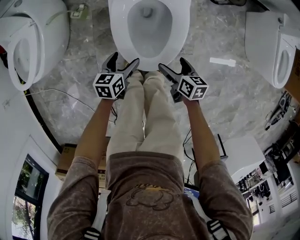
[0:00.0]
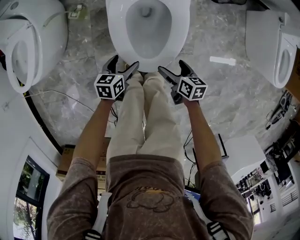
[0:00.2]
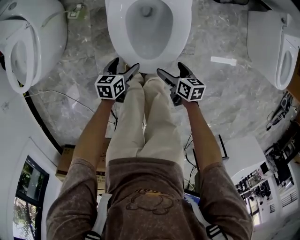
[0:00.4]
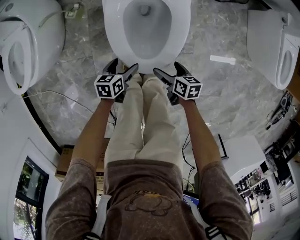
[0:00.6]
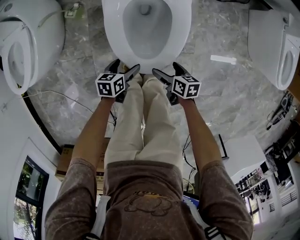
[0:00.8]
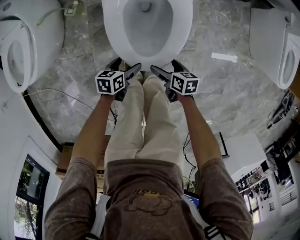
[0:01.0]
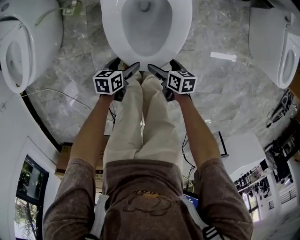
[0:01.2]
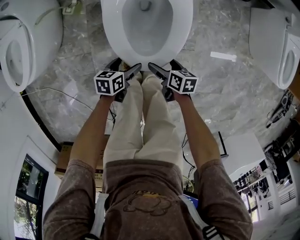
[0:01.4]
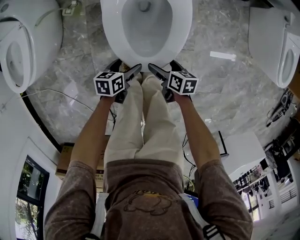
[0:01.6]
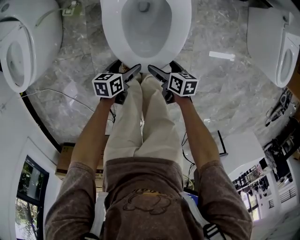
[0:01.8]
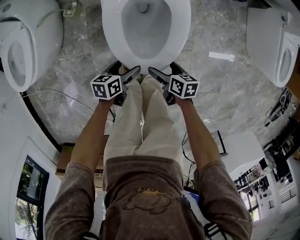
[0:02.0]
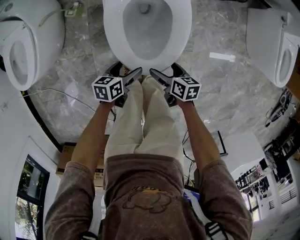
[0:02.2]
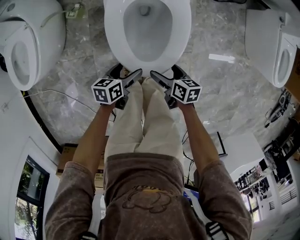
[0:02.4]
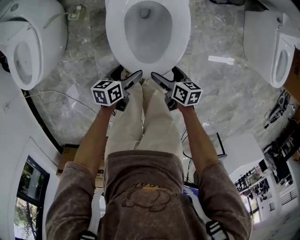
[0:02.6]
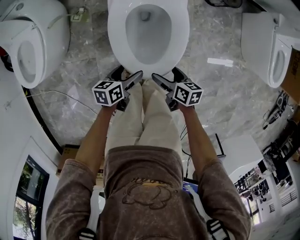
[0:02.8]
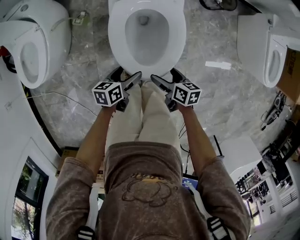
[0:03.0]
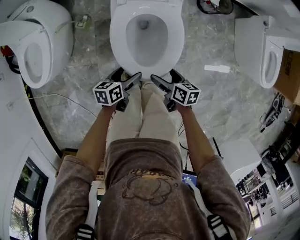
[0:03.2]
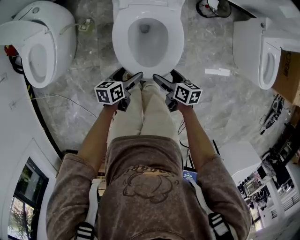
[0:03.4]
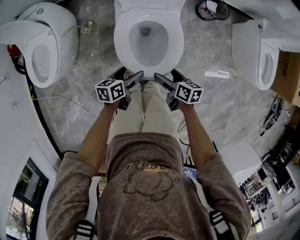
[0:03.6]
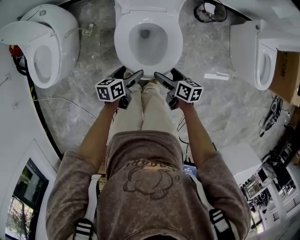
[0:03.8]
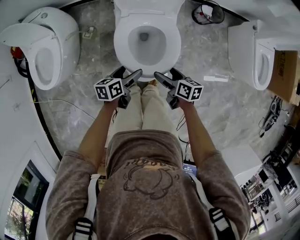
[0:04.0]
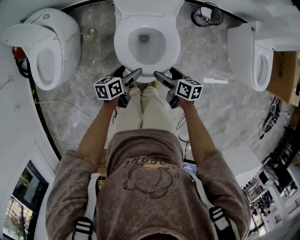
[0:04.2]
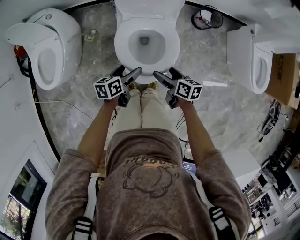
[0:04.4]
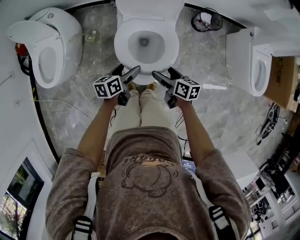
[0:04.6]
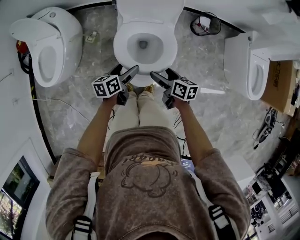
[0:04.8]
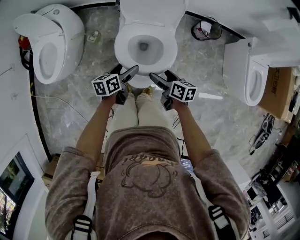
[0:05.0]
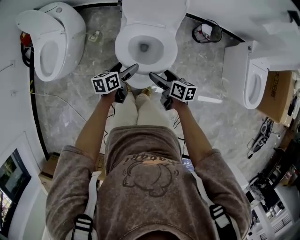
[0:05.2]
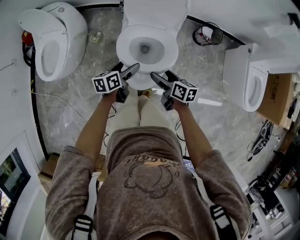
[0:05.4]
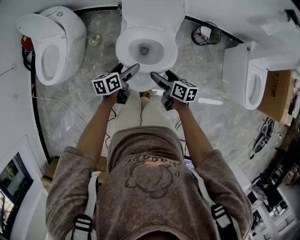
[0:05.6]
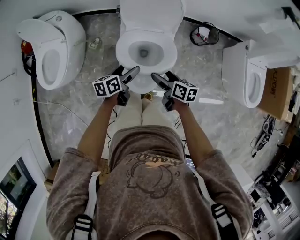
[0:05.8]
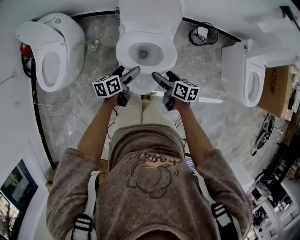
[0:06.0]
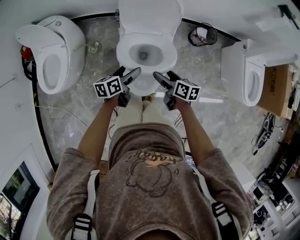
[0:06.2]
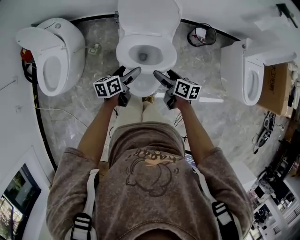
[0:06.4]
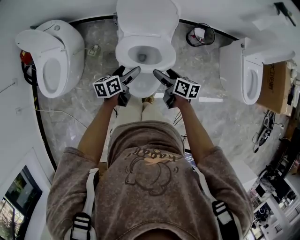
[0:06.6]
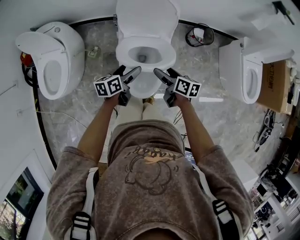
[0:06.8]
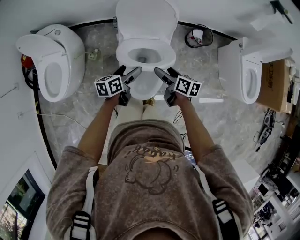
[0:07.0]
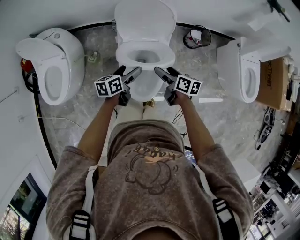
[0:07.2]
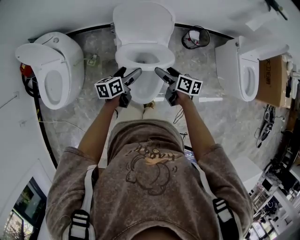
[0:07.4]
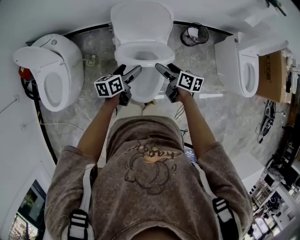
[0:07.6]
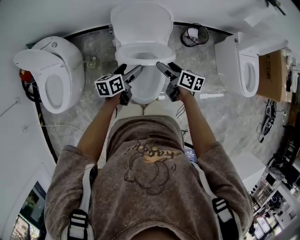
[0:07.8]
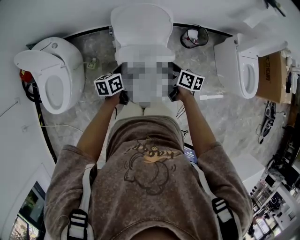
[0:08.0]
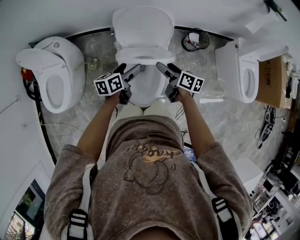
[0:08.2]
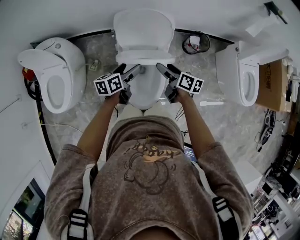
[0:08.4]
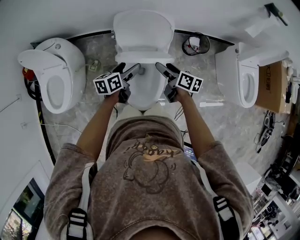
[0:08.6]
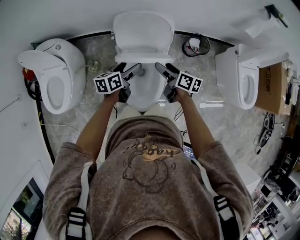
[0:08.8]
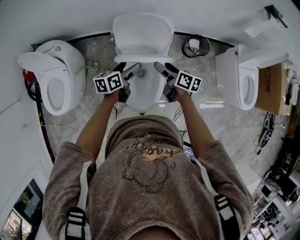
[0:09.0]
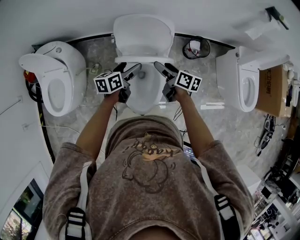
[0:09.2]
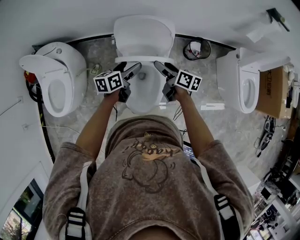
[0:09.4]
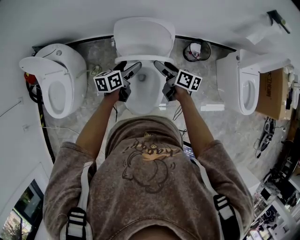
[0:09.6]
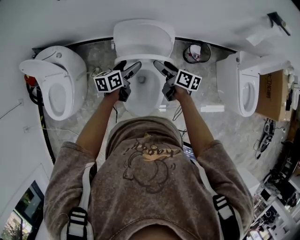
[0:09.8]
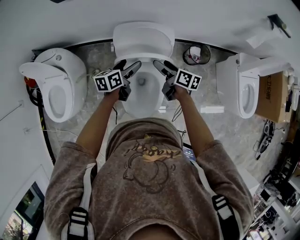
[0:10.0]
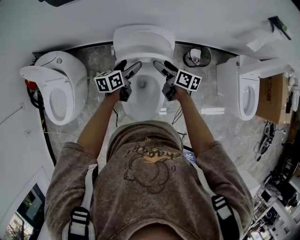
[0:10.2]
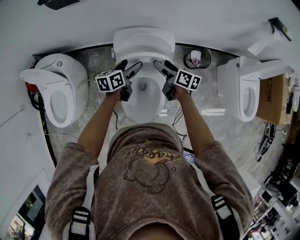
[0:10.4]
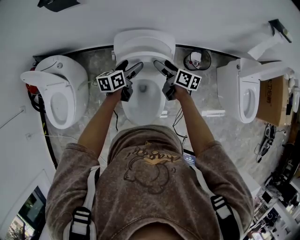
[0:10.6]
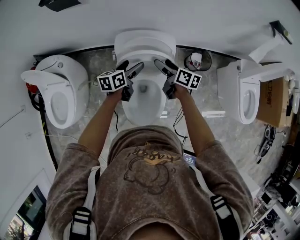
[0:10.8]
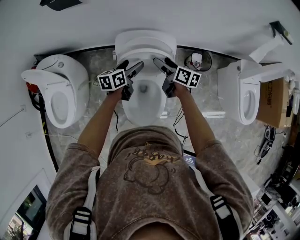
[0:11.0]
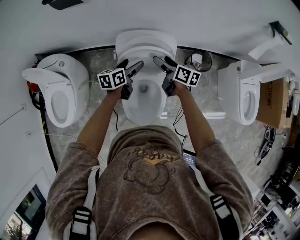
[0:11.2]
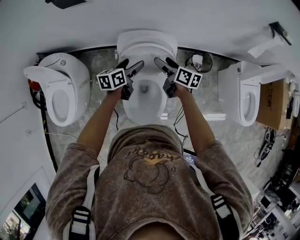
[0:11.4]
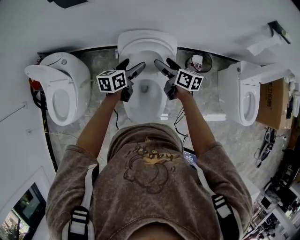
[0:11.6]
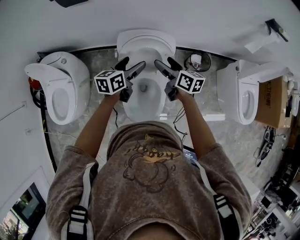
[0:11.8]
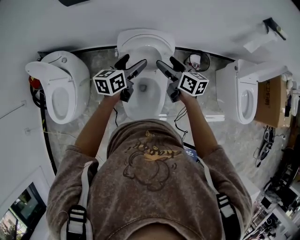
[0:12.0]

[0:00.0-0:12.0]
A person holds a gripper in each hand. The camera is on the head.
0:00.0 to 0:01.6: The left gripper moves downward and backward, approximately 10 cm; the right gripper is displaced downward by some 10 cm.
0:01.6 to 0:03.0: Both grippers travel together upward, some 15 cm.
0:03.0 to 0:04.4: Both grippers travel together upward and forward, roughly 15 cm.
0:04.4 to 0:06.0: The left gripper ends up some 5 cm from where it was, while the right gripper shifts by some 5 cm.
0:06.0 to 0:07.6: The grippers both shift forward by approximately 10 cm.
0:07.6 to 0:09.0: The grippers both shift forward by some 5 cm.
0:09.0 to 0:10.4: Both grippers move forward, roughly 10 cm.
0:10.4 to 0:12.0: Both grippers move upward, some 10 cm.

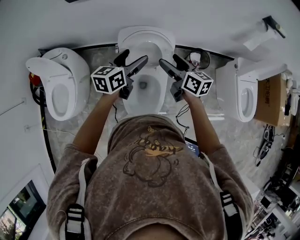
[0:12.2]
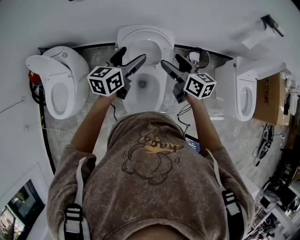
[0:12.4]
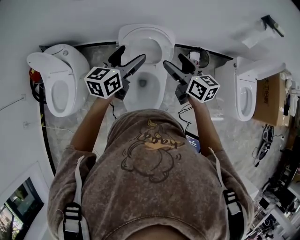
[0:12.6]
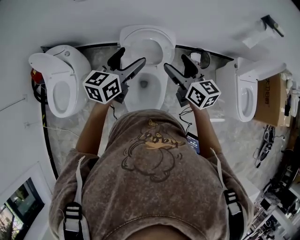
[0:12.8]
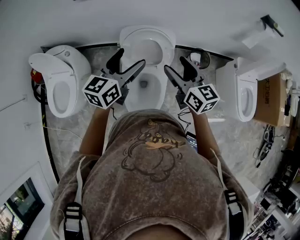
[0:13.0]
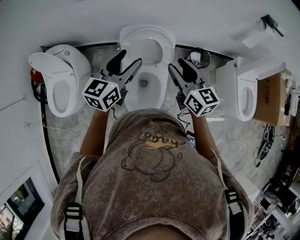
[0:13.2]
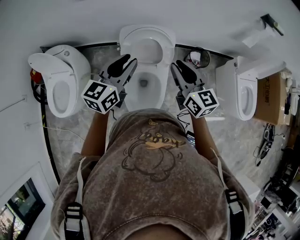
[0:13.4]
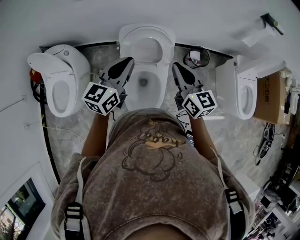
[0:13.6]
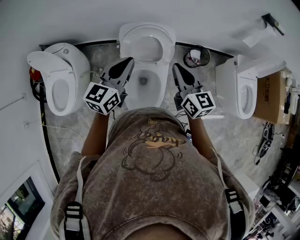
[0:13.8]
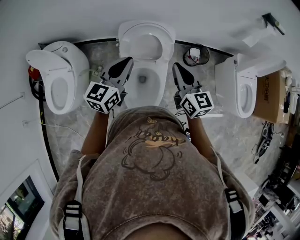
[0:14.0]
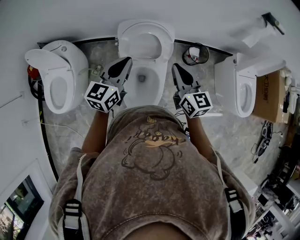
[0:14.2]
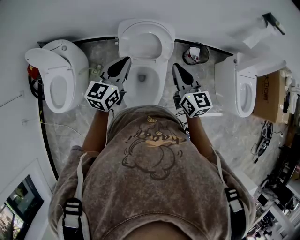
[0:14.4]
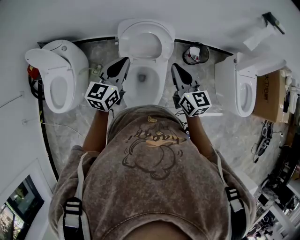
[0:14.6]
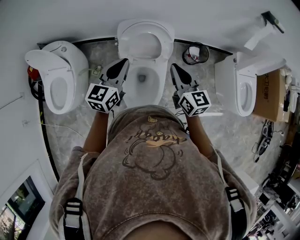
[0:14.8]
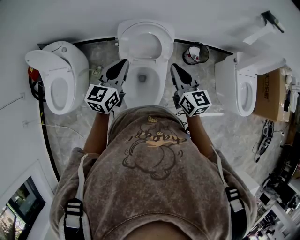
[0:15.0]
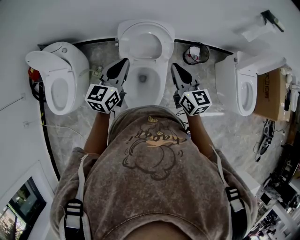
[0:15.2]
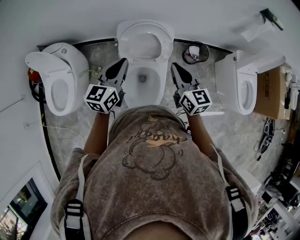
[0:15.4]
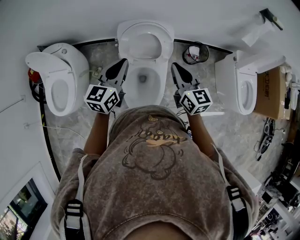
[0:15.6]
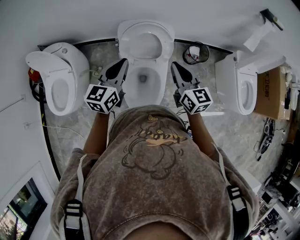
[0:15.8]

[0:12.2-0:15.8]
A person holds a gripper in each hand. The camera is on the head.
0:12.2 to 0:14.0: Both grippers travel together backward and upward, roughly 10 cm. The right gripper turns by roughly 30 degrees, and closes its fingers; the left gripper closes.
0:14.0 to 0:15.8: The grippers move only a little.

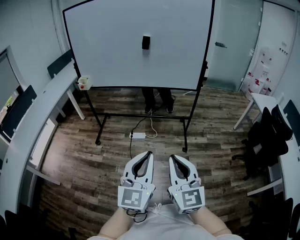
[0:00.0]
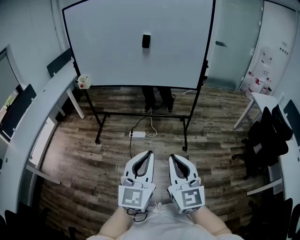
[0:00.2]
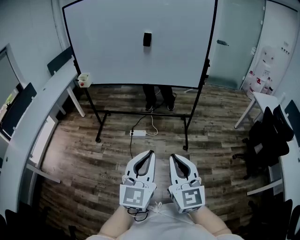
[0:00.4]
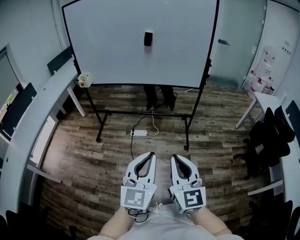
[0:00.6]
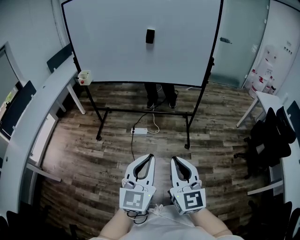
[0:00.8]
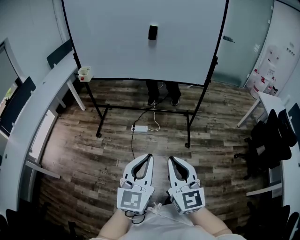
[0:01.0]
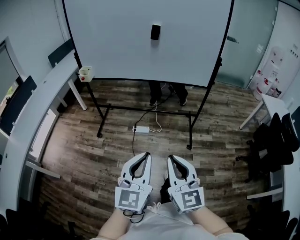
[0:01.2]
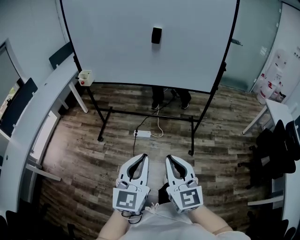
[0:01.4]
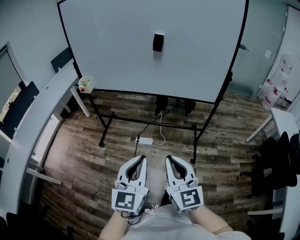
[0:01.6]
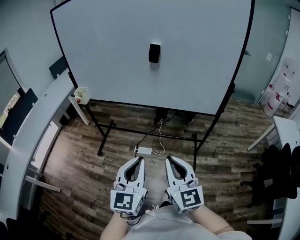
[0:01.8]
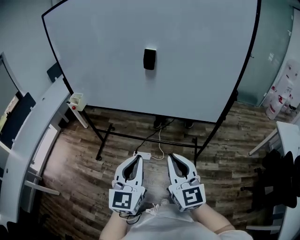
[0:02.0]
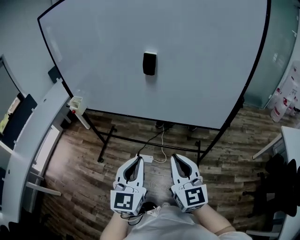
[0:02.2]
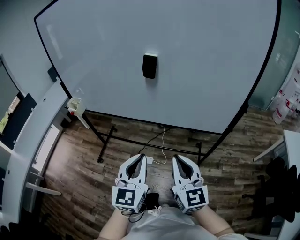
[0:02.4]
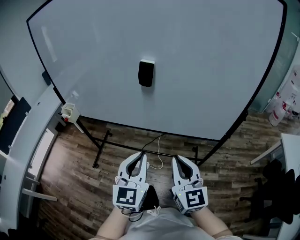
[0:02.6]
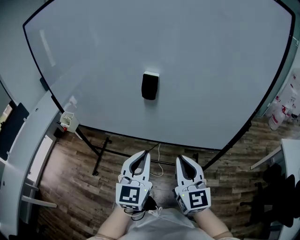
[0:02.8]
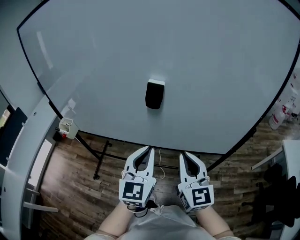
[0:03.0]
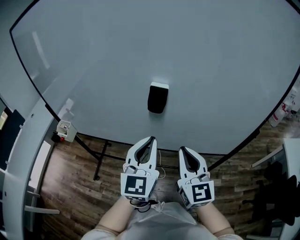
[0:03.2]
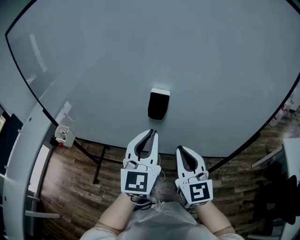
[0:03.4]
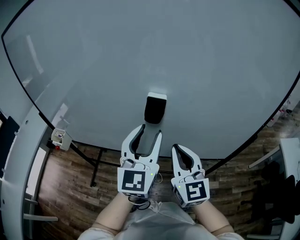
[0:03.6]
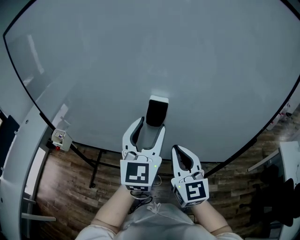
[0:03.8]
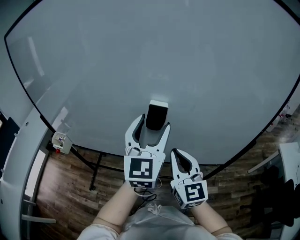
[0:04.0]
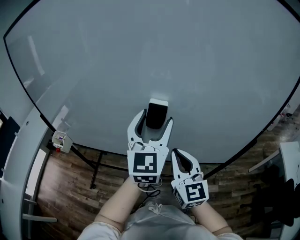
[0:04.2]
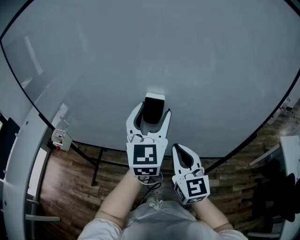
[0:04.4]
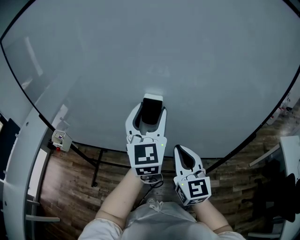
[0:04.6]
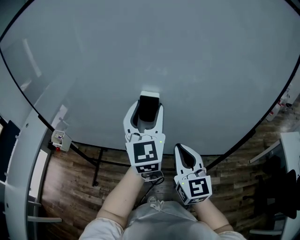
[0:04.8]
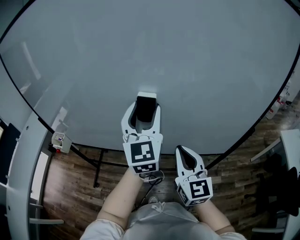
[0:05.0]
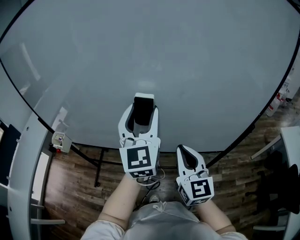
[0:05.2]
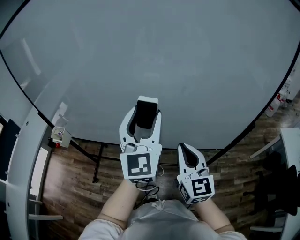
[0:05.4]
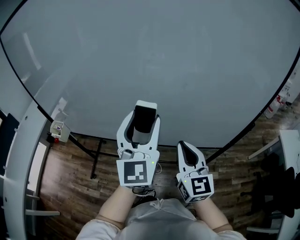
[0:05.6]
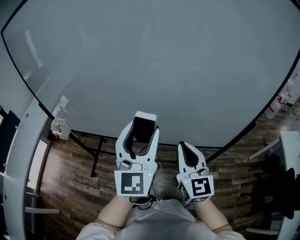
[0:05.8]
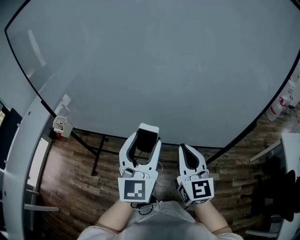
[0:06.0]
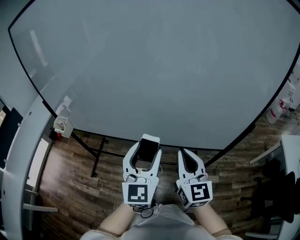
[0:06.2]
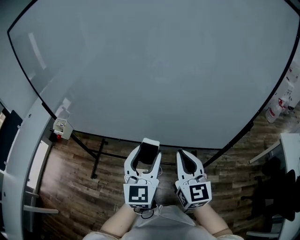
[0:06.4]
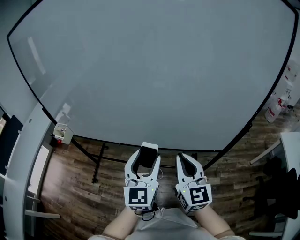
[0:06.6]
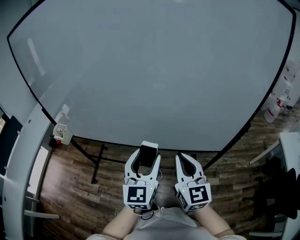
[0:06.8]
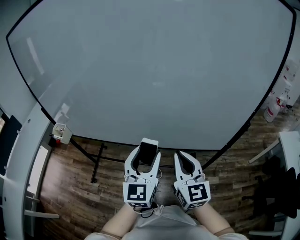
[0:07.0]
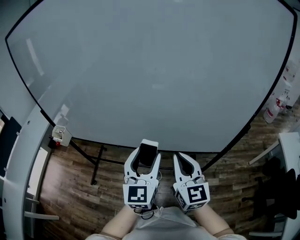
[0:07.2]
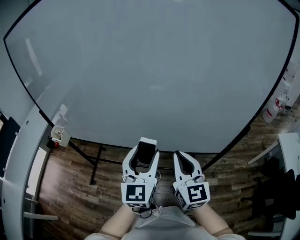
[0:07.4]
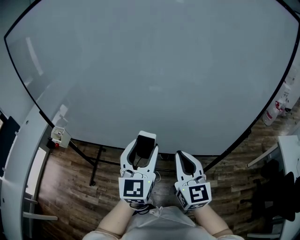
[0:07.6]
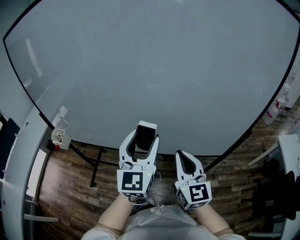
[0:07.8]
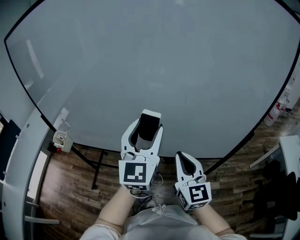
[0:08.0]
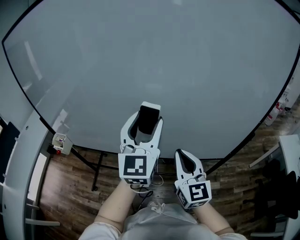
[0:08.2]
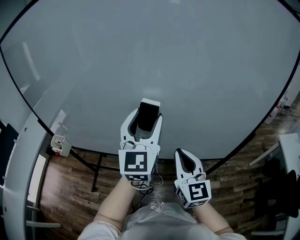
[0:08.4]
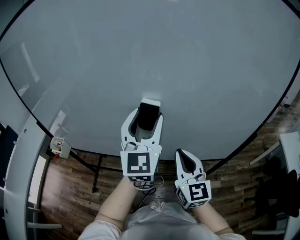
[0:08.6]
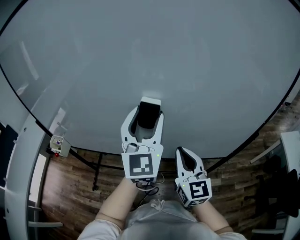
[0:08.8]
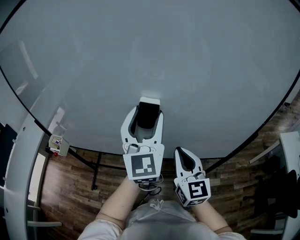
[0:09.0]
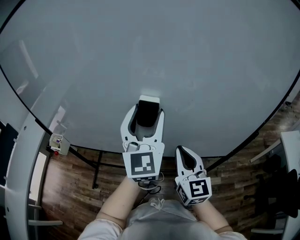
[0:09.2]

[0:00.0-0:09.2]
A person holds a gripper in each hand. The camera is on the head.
0:00.0 to 0:01.6: The two grippers go some 20 cm forward.
0:01.6 to 0:03.0: The two grippers travel together, forward, approximately 40 cm.
0:03.0 to 0:04.6: The left gripper travels forward and upward by some 20 cm, and opens up. Meanwhile the right gripper is displaced forward by about 10 cm.
0:04.6 to 0:06.2: The right gripper is displaced backward by some 5 cm, while the left gripper goes approximately 20 cm backward and downward.
0:06.2 to 0:07.6: The grippers move only a little.
0:07.6 to 0:09.2: The left gripper goes about 15 cm forward and upward. The right gripper heads forward, covering some 5 cm.
